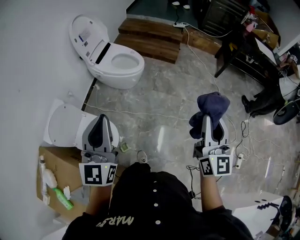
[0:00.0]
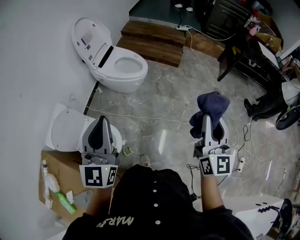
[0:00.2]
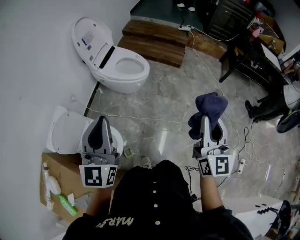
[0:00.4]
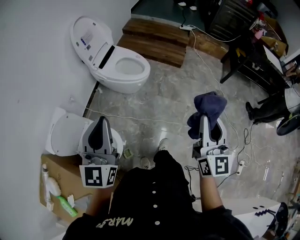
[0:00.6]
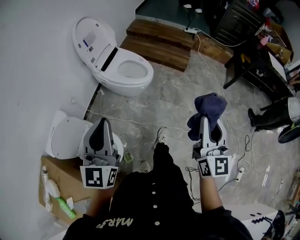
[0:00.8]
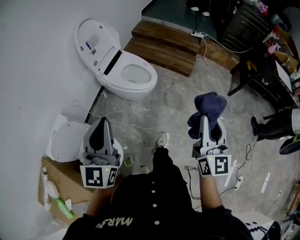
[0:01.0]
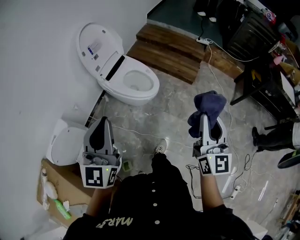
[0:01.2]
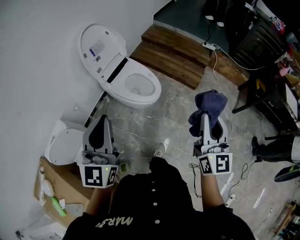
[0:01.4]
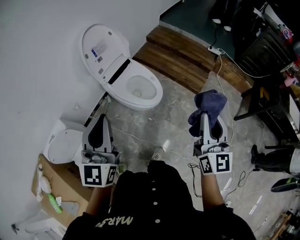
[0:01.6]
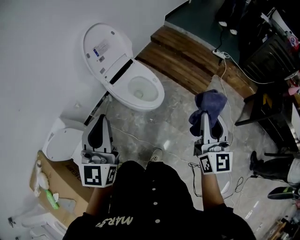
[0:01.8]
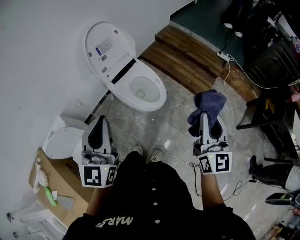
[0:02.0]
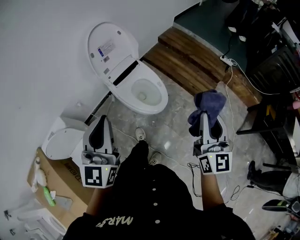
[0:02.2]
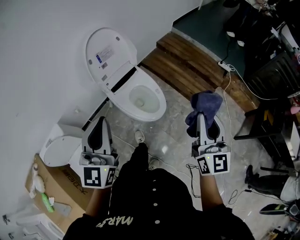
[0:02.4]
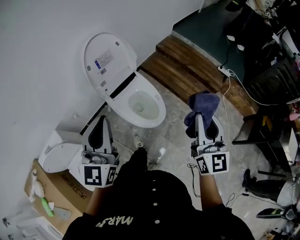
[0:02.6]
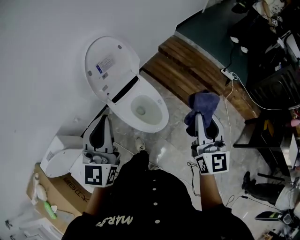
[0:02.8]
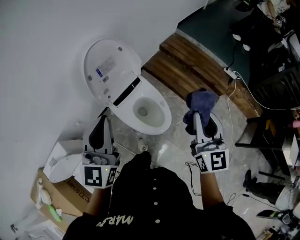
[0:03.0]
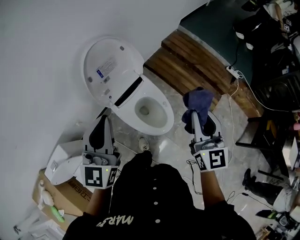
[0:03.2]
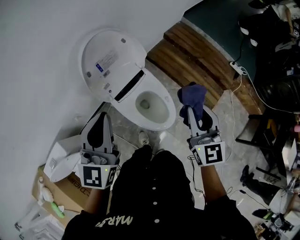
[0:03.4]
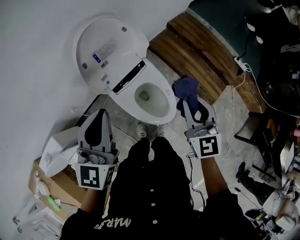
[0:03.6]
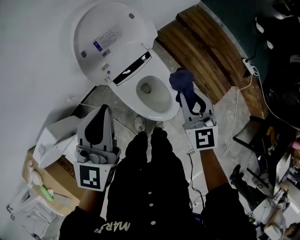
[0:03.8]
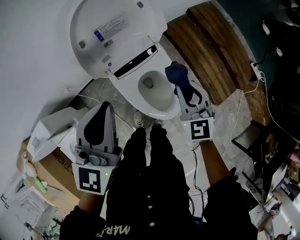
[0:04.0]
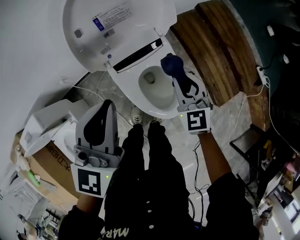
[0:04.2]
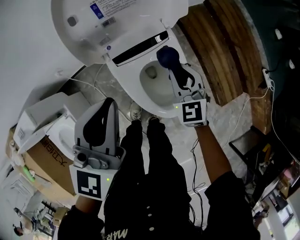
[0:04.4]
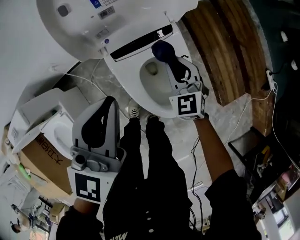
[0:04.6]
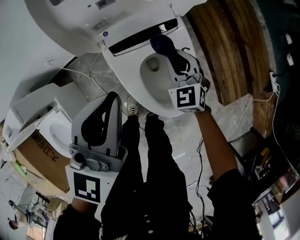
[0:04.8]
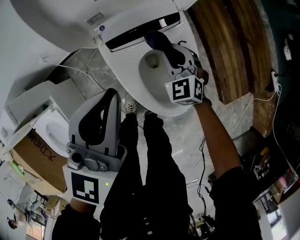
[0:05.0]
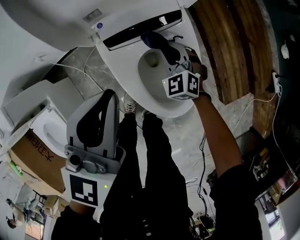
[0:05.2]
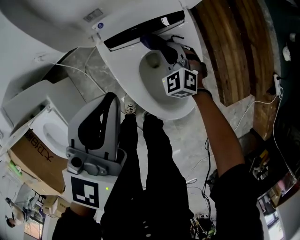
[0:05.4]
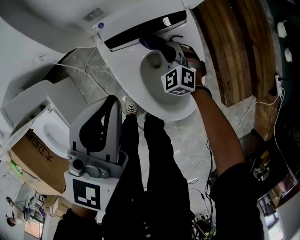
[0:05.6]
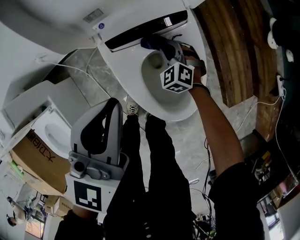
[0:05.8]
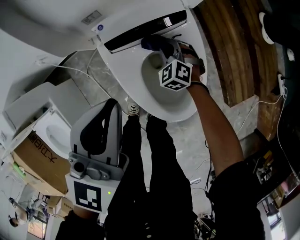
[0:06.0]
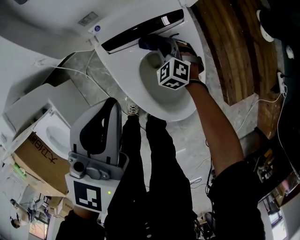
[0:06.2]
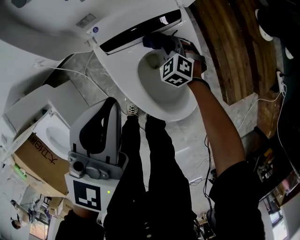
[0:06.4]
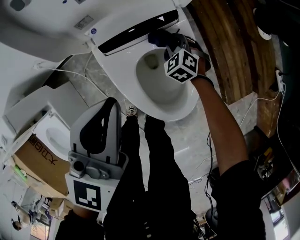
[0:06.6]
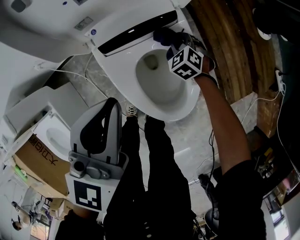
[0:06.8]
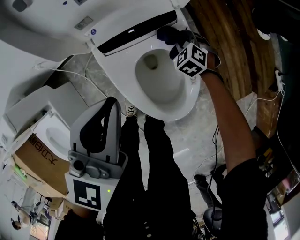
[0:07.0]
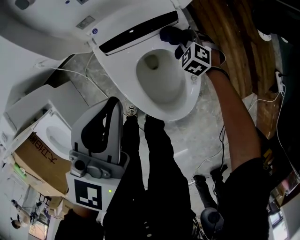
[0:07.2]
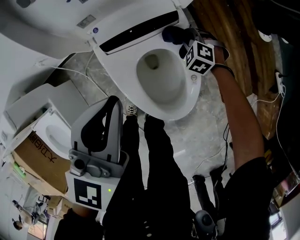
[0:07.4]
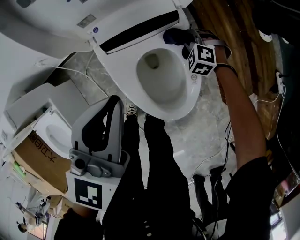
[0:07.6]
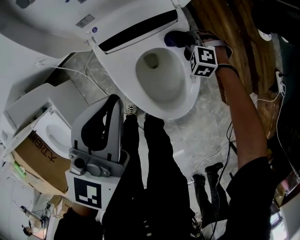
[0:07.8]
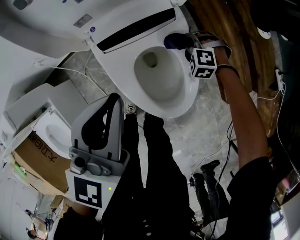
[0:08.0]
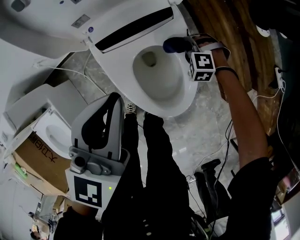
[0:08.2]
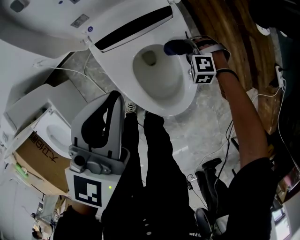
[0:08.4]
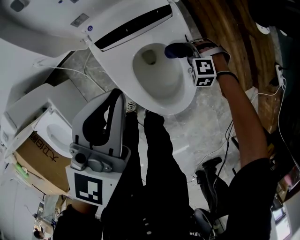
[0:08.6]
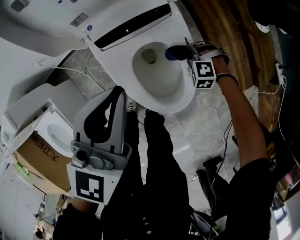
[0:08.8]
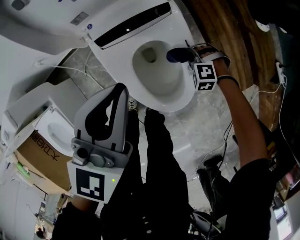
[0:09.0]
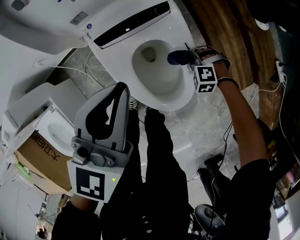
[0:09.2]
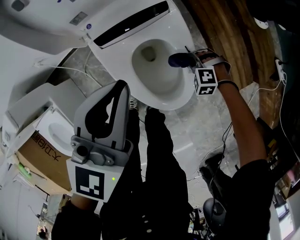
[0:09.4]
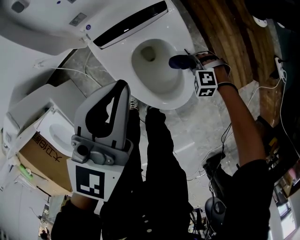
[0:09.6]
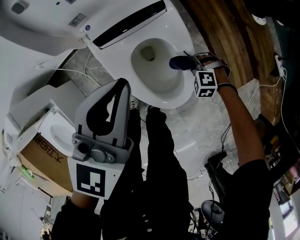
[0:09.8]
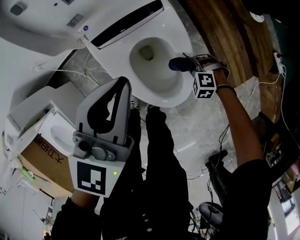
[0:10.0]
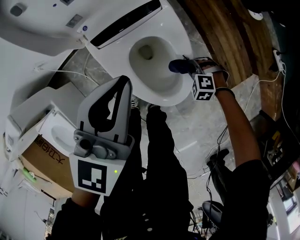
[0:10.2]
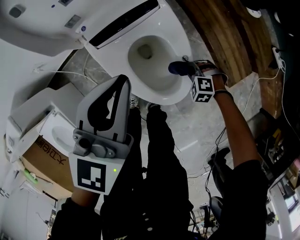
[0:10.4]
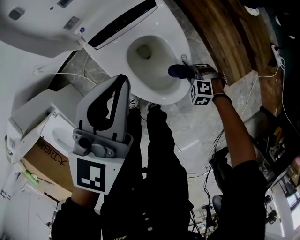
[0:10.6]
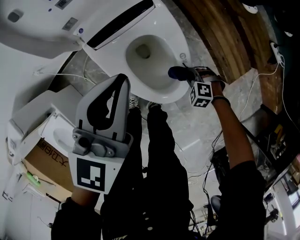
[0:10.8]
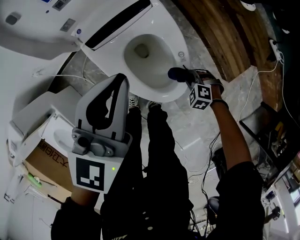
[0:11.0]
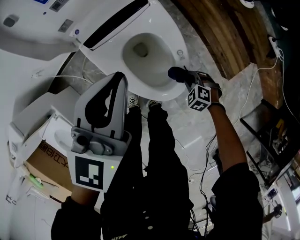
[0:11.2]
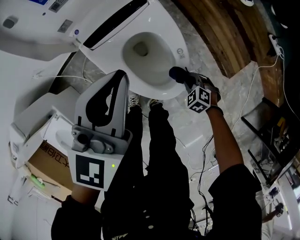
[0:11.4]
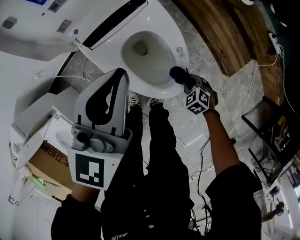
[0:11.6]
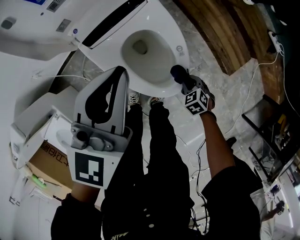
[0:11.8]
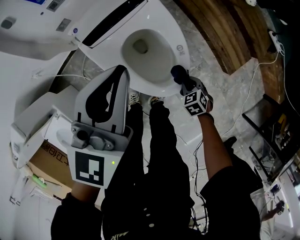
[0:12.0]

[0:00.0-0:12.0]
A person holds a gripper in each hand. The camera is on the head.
0:00.0 to 0:01.6: The grippers both shift forward by some 40 cm.
0:01.6 to 0:03.0: The two grippers go about 30 cm forward.
0:03.0 to 0:04.4: The left gripper goes some 25 cm downward and forward; the right gripper heads downward and forward, covering some 50 cm, and changes its angle by roughly 50 degrees.
0:04.4 to 0:06.0: The right gripper moves downward, about 30 cm, and turns by approximately 40 degrees. Meanwhile the left gripper travels downward by approximately 15 cm.
0:06.0 to 0:07.6: The right gripper moves to the right, approximately 10 cm, and changes its angle by some 20 degrees.
0:07.6 to 0:09.0: The right gripper shifts about 10 cm backward.
0:09.0 to 0:10.4: The right gripper ends up some 10 cm from where it was.
0:10.4 to 0:12.0: The right gripper moves some 10 cm, and rolls clockwise, seen from behind, by about 60 degrees.

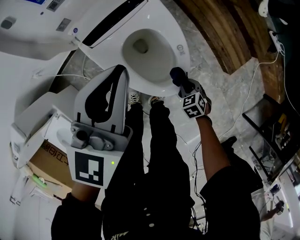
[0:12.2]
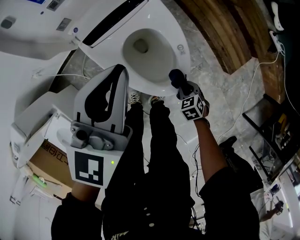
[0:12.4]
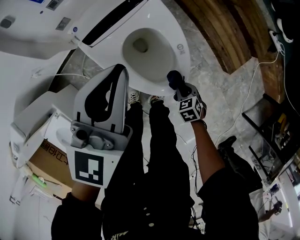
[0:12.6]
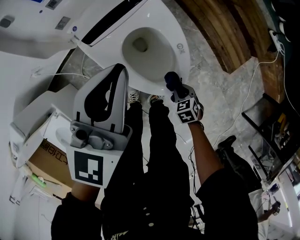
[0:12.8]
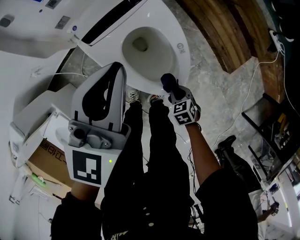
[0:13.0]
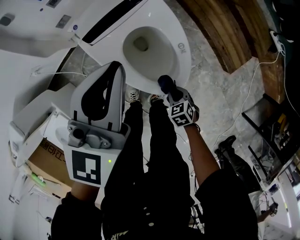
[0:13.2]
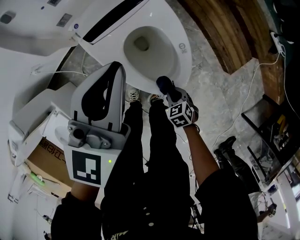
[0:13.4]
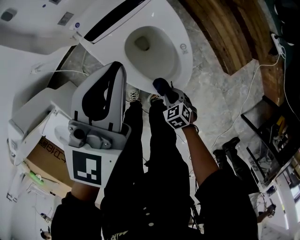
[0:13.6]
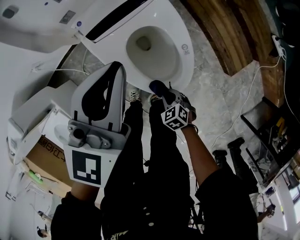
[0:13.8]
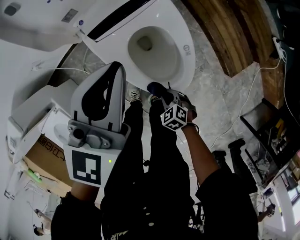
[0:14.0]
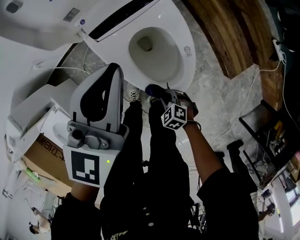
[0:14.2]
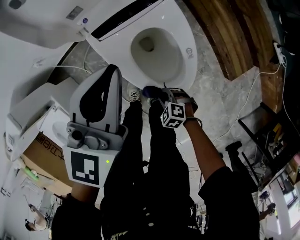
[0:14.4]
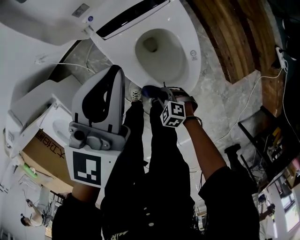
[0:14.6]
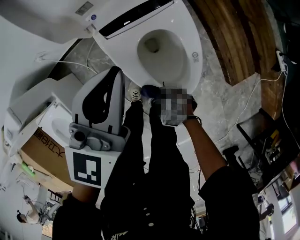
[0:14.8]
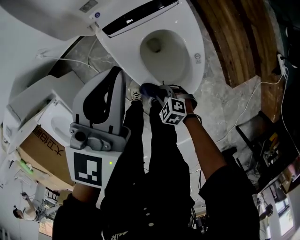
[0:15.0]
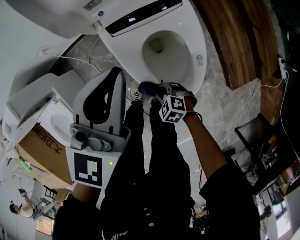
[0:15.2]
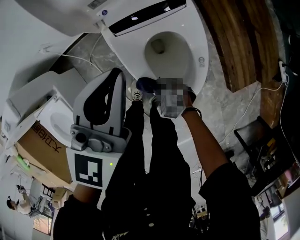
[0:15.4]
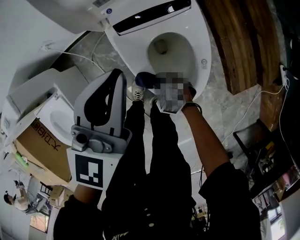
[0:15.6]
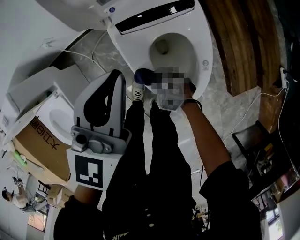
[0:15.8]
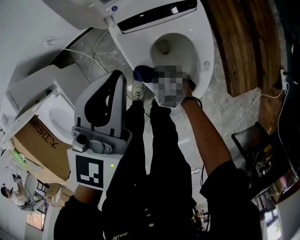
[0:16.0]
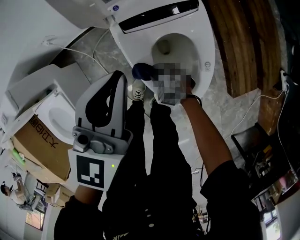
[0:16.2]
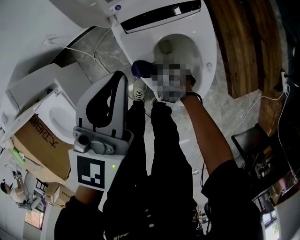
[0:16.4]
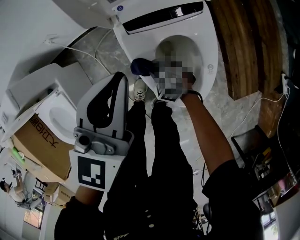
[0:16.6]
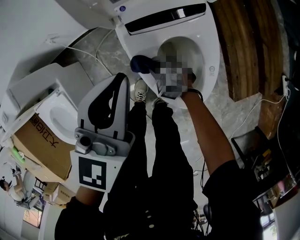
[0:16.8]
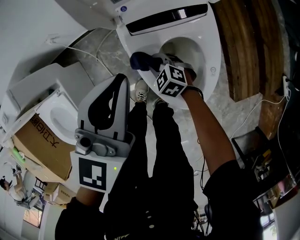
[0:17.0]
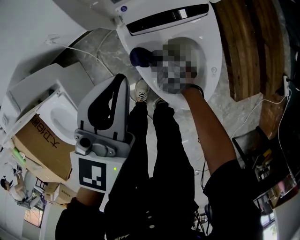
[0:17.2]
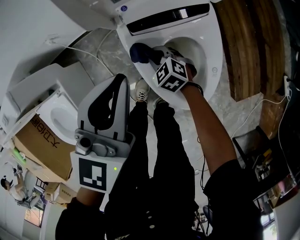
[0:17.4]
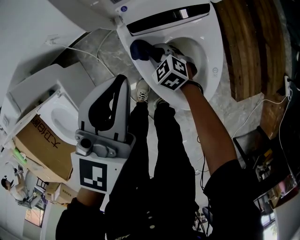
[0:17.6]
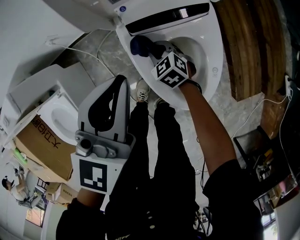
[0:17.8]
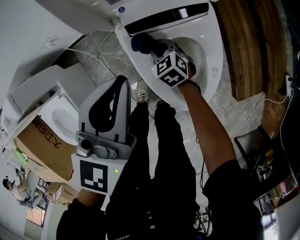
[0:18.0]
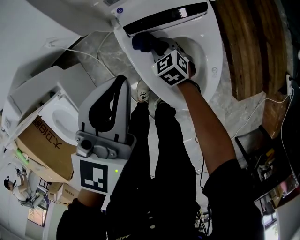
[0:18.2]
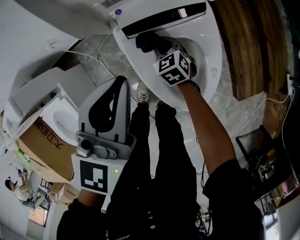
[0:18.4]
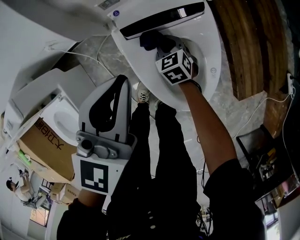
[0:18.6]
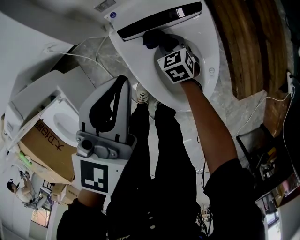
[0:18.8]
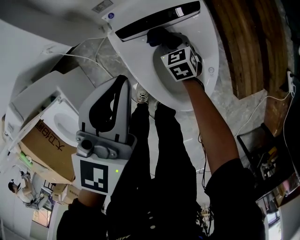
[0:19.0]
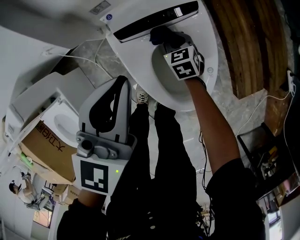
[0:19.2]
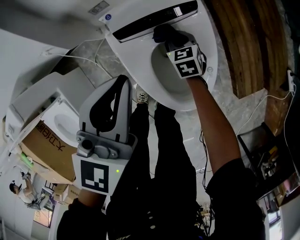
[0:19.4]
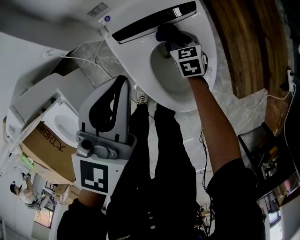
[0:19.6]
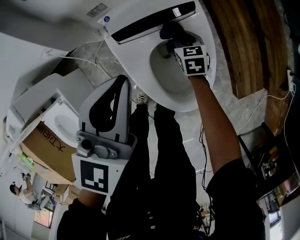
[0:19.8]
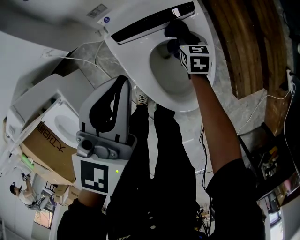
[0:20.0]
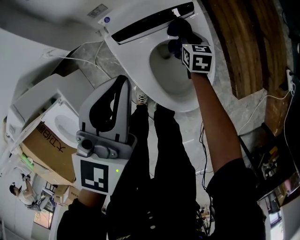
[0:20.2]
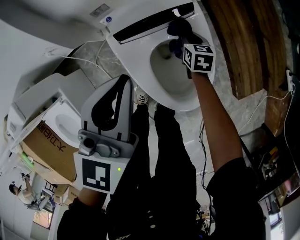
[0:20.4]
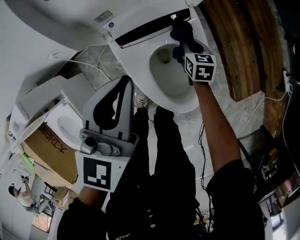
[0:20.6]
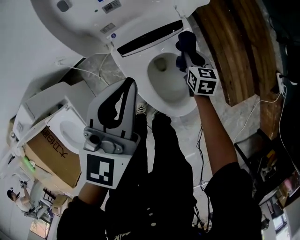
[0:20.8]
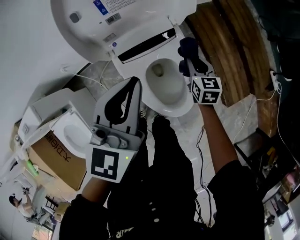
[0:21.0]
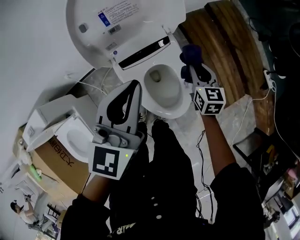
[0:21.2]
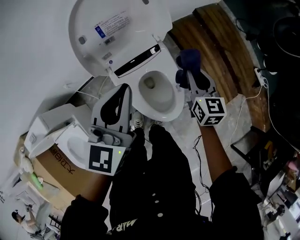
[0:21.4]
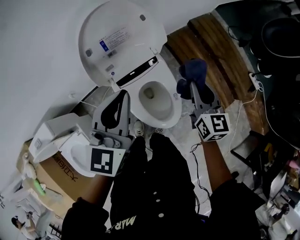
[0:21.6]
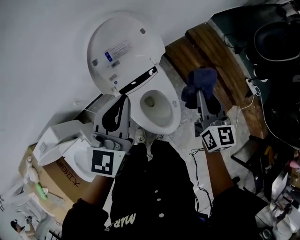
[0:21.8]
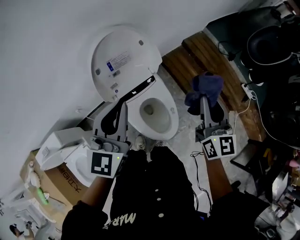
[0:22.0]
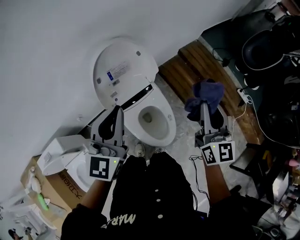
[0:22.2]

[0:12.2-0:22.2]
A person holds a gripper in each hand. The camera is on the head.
0:12.2 to 0:13.6: The right gripper moves to the left, roughly 10 cm.
0:13.6 to 0:15.0: The left gripper shifts by some 5 cm, while the right gripper shifts by some 10 cm, and turns by some 40 degrees.
0:15.0 to 0:16.4: The right gripper moves forward, about 15 cm.
0:16.4 to 0:18.0: The right gripper shifts approximately 10 cm forward, and turns by approximately 20 degrees.
0:18.0 to 0:19.4: The right gripper goes approximately 10 cm to the right, and turns by some 20 degrees.
0:19.4 to 0:20.8: The right gripper heads upward and to the right, covering approximately 15 cm, and changes its angle by about 20 degrees; the left gripper shifts approximately 10 cm upward.
0:20.8 to 0:22.2: The right gripper travels upward by some 60 cm, and tips its fingers upward by some 50 degrees. The left gripper moves upward, some 25 cm.

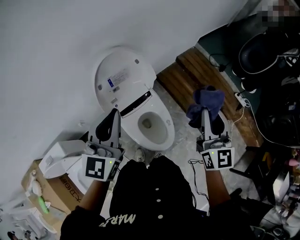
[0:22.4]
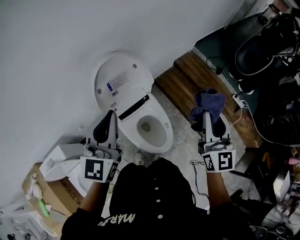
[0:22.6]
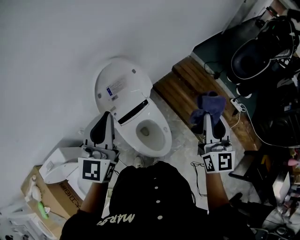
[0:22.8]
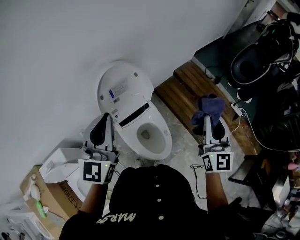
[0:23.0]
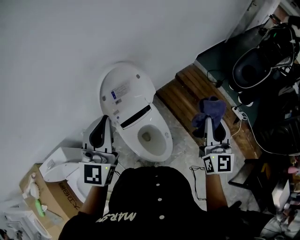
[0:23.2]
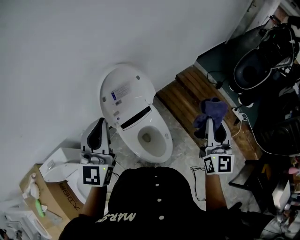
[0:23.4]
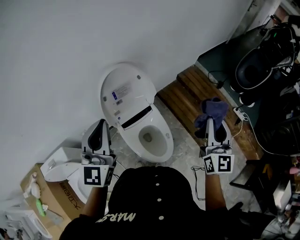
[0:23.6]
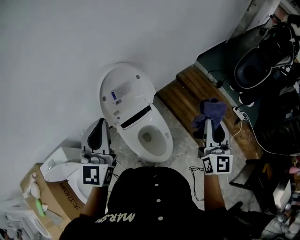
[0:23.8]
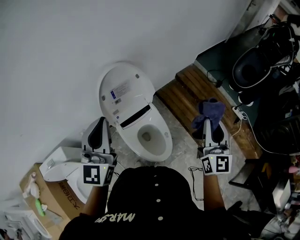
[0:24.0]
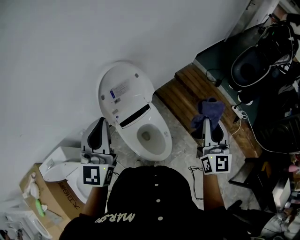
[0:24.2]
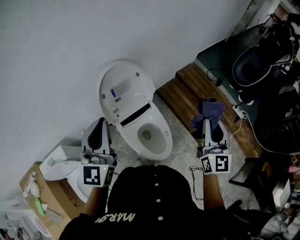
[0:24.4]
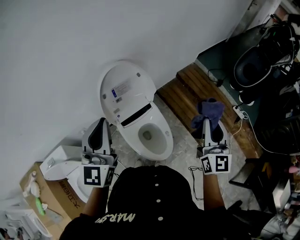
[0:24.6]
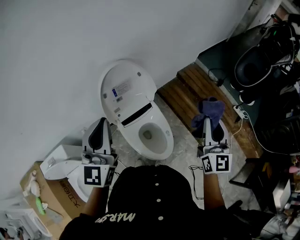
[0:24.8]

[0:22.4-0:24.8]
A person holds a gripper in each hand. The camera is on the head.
0:22.4 to 0:23.6: The left gripper changes place by roughly 5 cm. The right gripper ends up roughly 5 cm from where it was.
0:23.6 to 0:24.8: The grippers move only a little.
